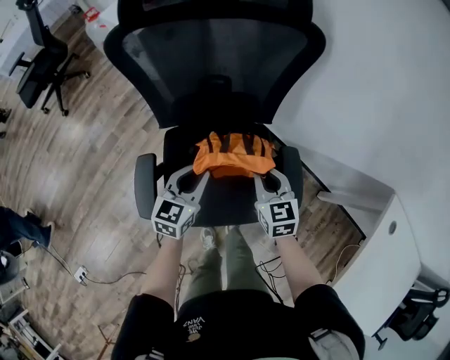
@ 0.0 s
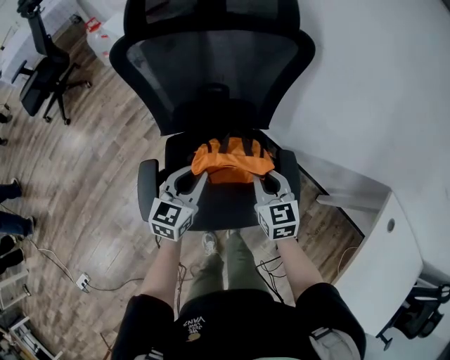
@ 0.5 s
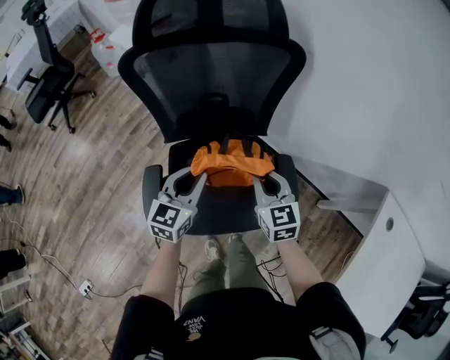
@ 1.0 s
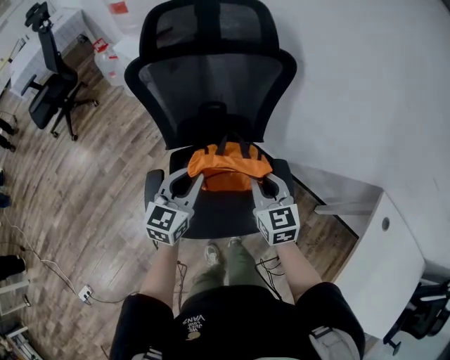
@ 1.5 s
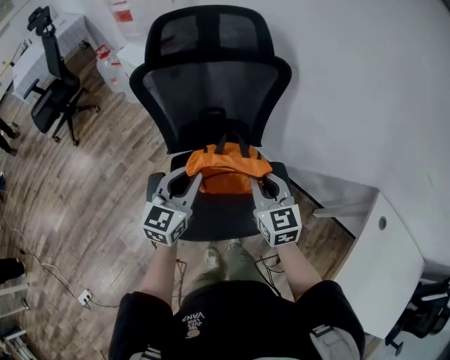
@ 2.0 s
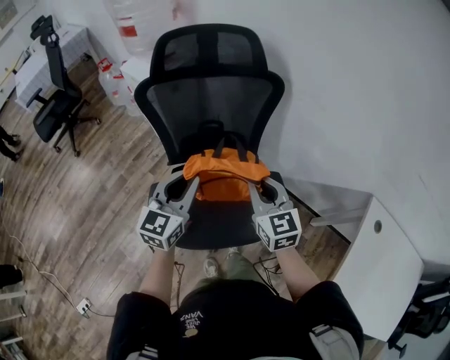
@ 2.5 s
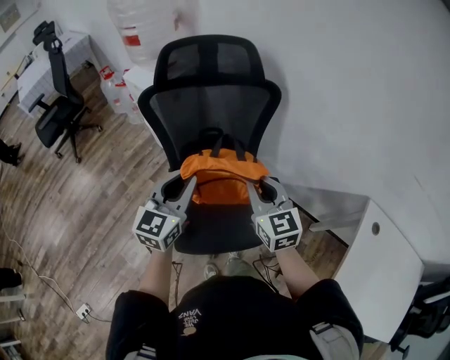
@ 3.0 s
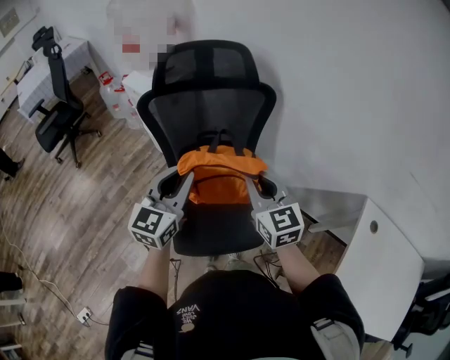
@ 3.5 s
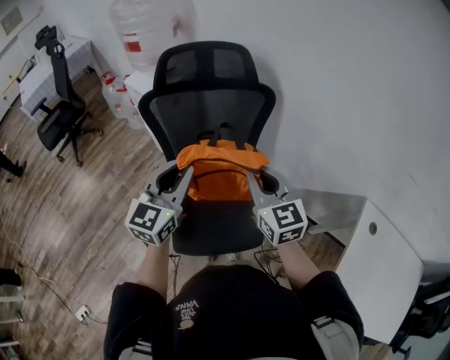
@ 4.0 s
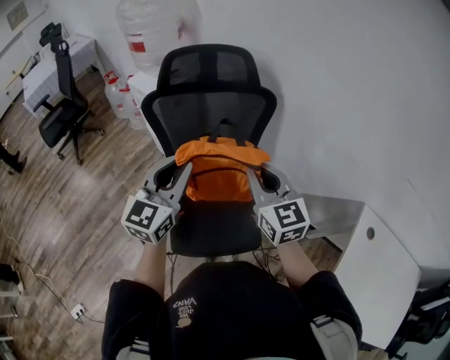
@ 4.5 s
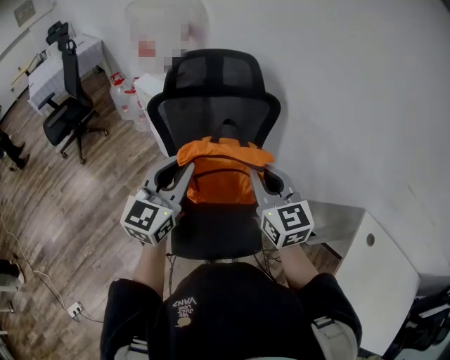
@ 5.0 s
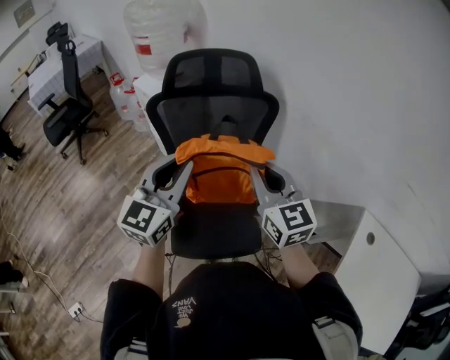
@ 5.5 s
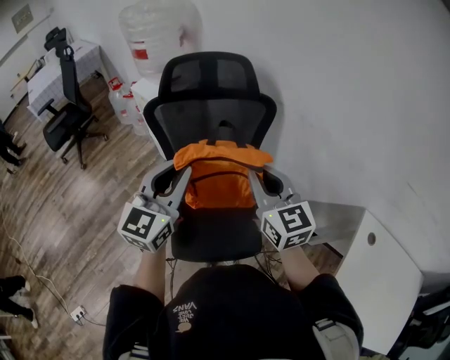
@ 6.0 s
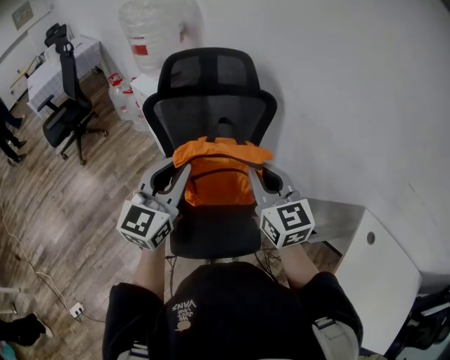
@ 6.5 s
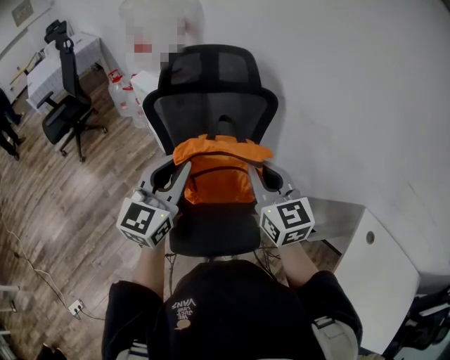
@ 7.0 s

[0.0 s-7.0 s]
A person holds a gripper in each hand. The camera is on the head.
0.0 to 2.0 s: Both grippers travel together upward, approximately 20 cm.
2.0 to 3.5 s: The two grippers go about 10 cm upward.
3.5 to 5.0 s: Both grippers move upward, some 5 cm.
5.0 to 7.0 s: The grippers make only small movements.

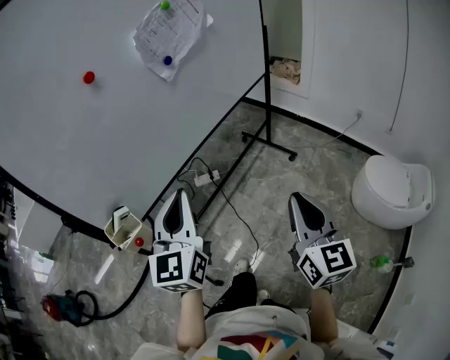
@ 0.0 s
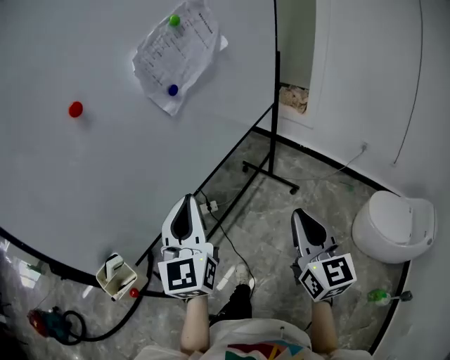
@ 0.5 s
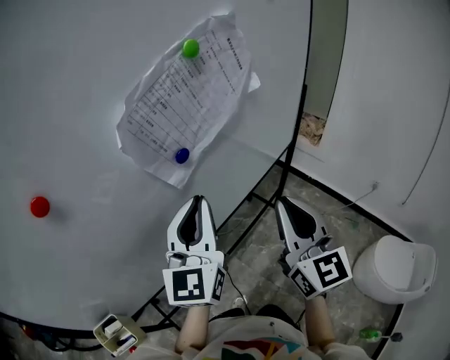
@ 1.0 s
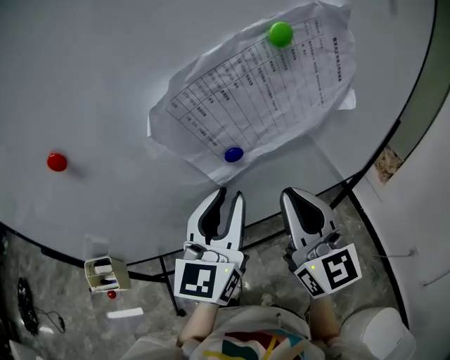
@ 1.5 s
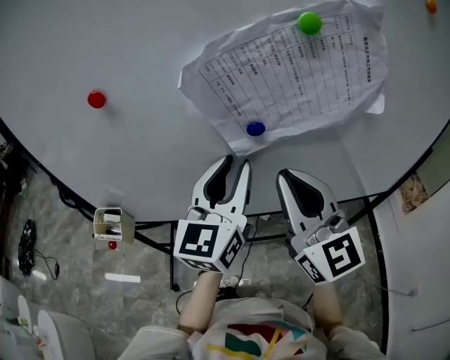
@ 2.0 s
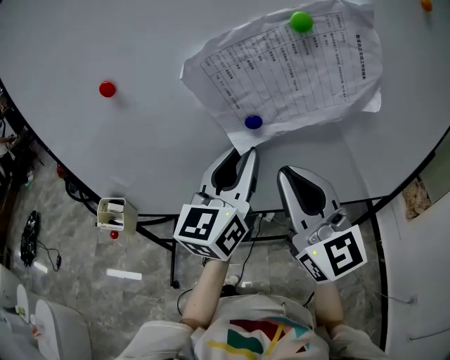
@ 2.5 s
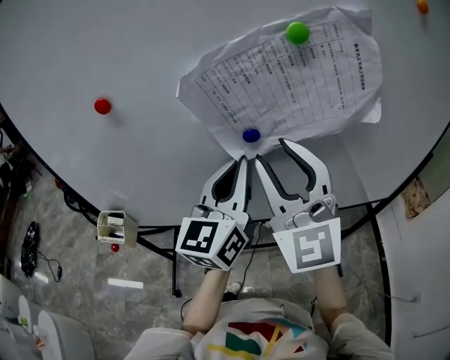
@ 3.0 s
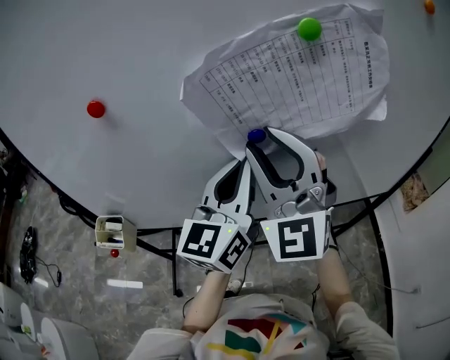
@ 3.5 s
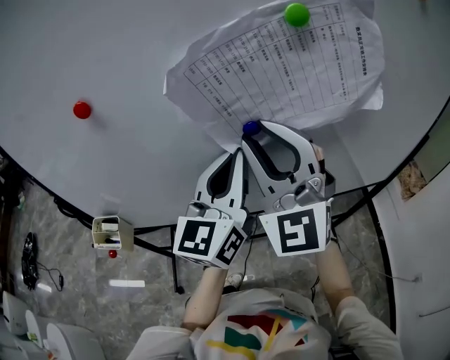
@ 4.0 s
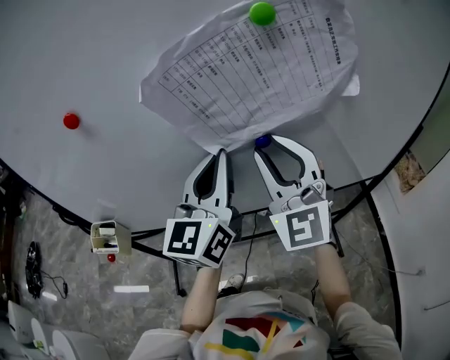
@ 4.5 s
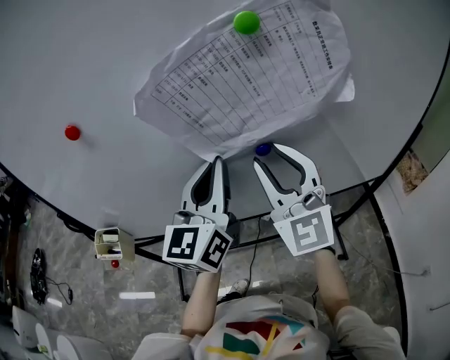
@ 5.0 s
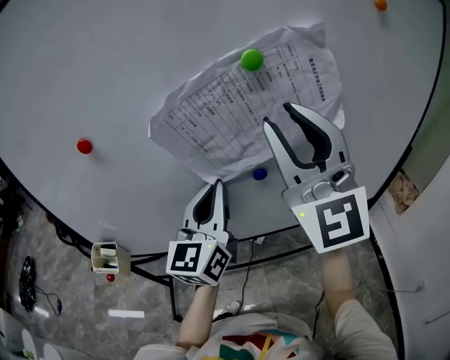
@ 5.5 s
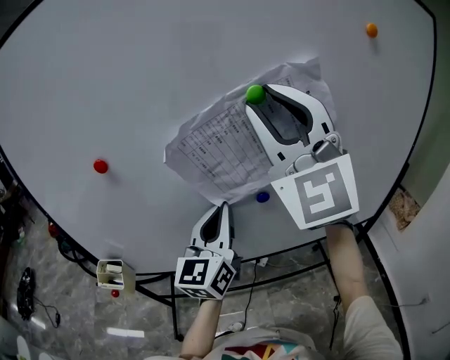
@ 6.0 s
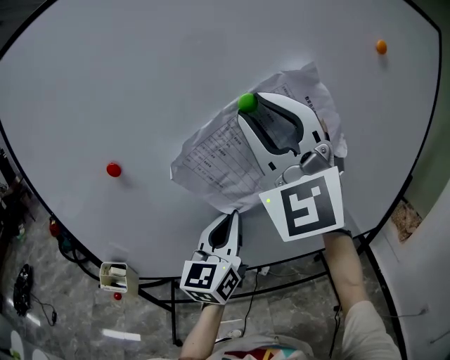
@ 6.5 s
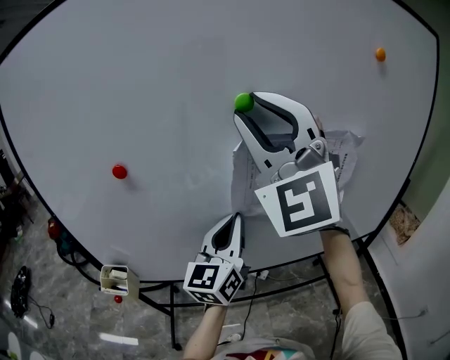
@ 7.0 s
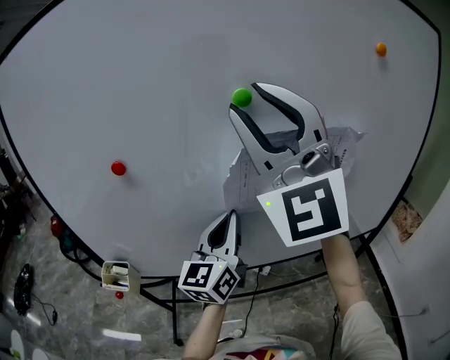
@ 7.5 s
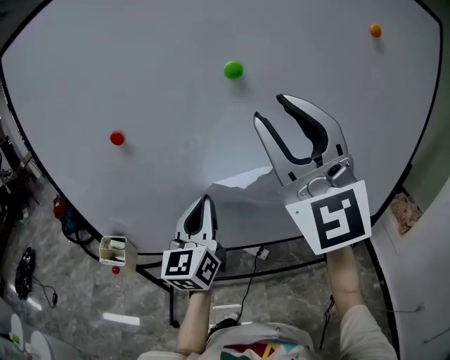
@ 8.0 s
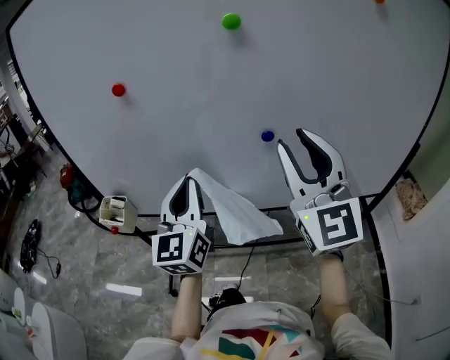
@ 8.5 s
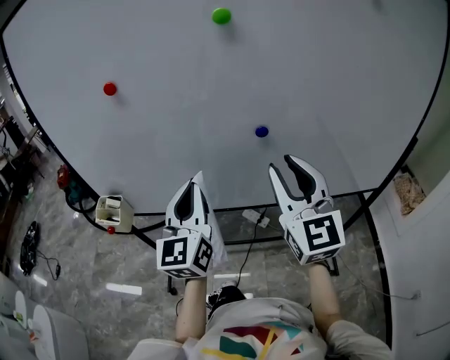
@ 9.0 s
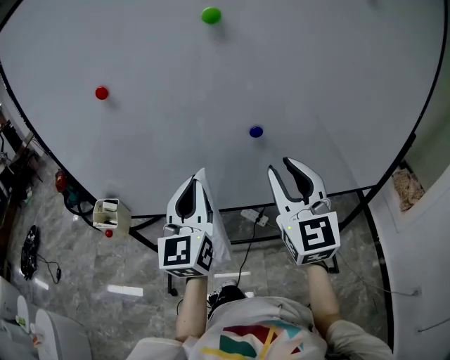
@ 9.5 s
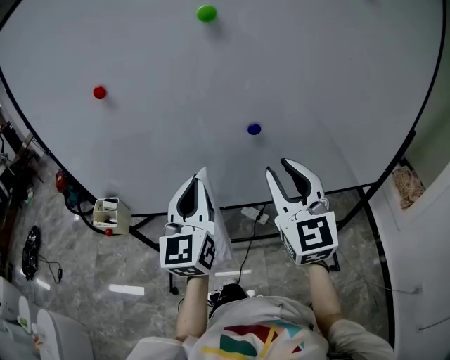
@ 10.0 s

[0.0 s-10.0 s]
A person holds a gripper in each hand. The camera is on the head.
0.0 to 2.0 s: The left gripper shifts by about 35 cm, swivels approximately 30 degrees, and opens its fingers, while the right gripper changes place by approximately 50 cm, and rotates approximately 60 degrees.
2.0 to 4.0 s: The left gripper closes its fingers. Meanwhile the right gripper travels forward by roughly 5 cm, rotates around the line of its fingers by approximately 40 degrees, counterclockwise from behind, and opens up.
4.0 to 6.0 s: The right gripper goes some 20 cm upward.
6.0 to 8.0 s: The left gripper travels to the left by roughly 5 cm, while the right gripper goes approximately 10 cm backward.
8.0 to 10.0 s: The left gripper goes roughly 5 cm backward, while the right gripper heads downward, covering about 25 cm, and rotates some 30 degrees.

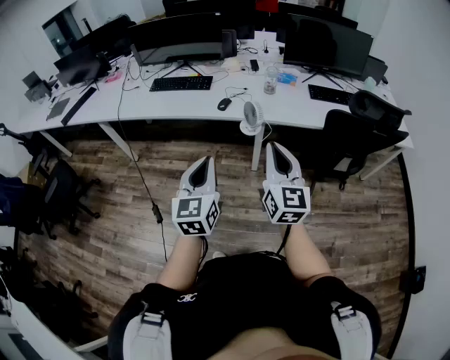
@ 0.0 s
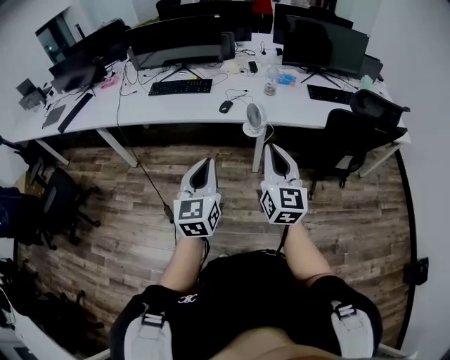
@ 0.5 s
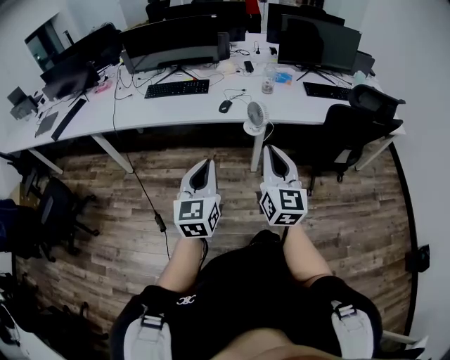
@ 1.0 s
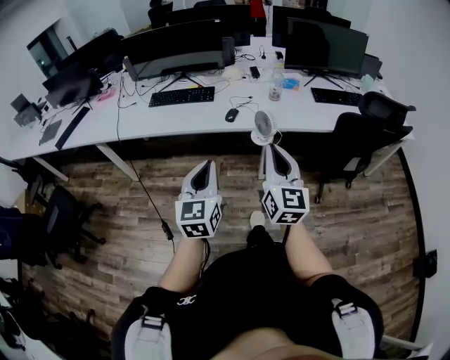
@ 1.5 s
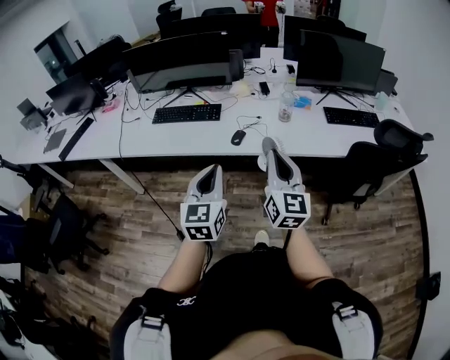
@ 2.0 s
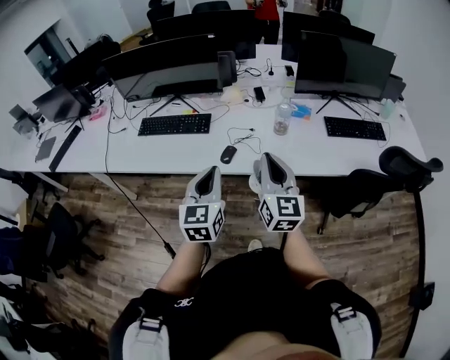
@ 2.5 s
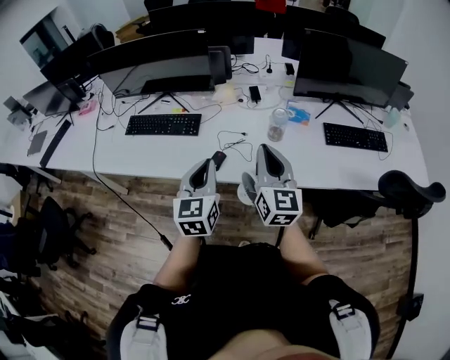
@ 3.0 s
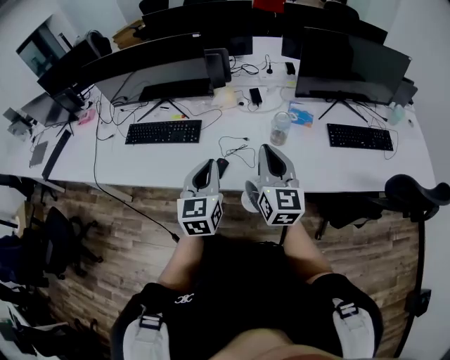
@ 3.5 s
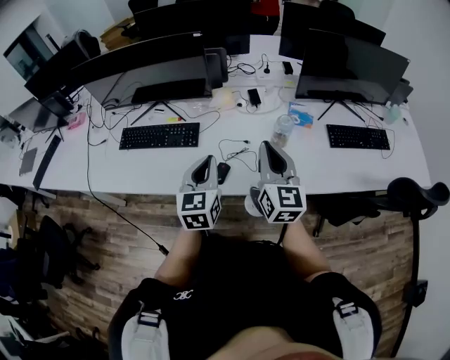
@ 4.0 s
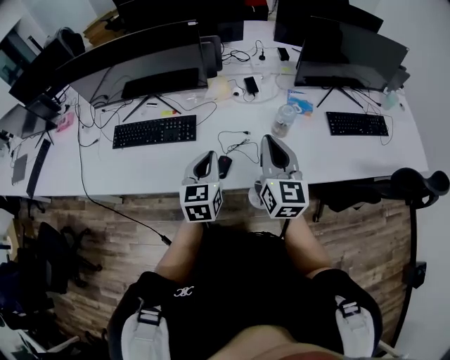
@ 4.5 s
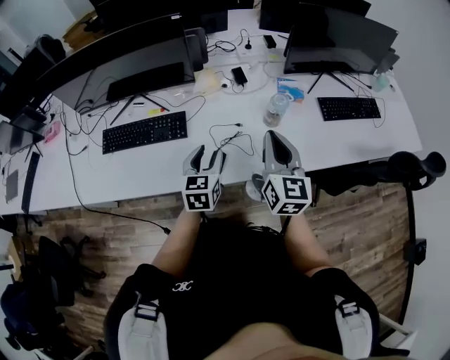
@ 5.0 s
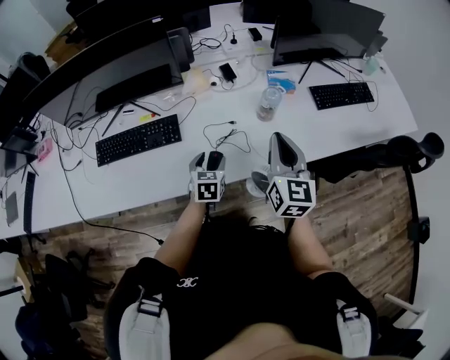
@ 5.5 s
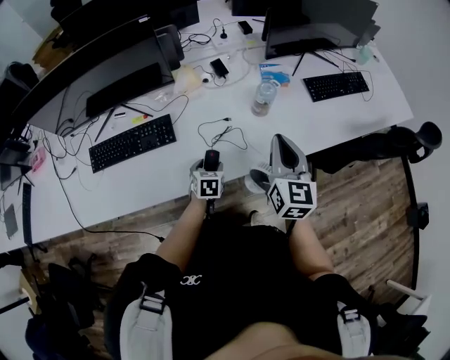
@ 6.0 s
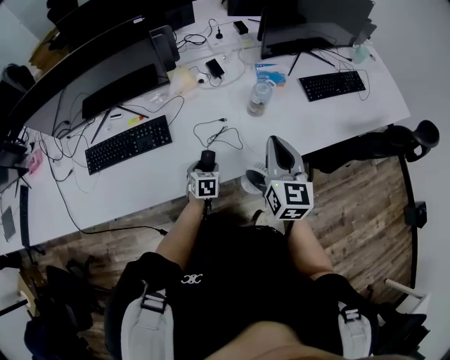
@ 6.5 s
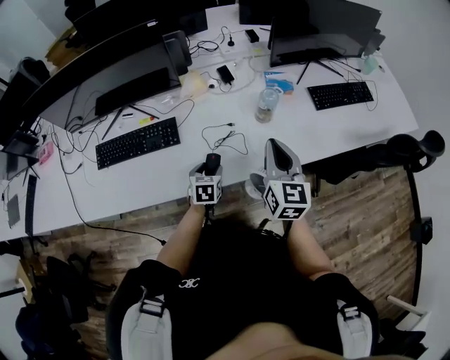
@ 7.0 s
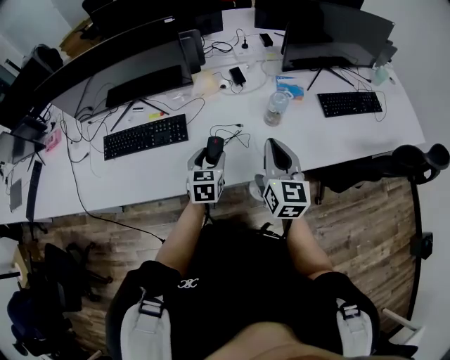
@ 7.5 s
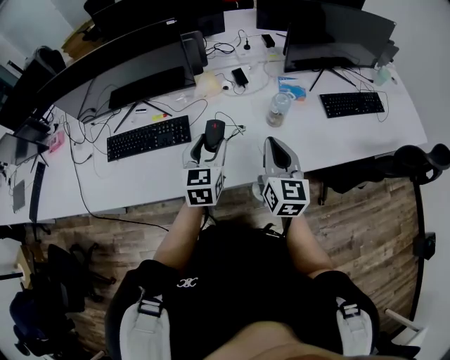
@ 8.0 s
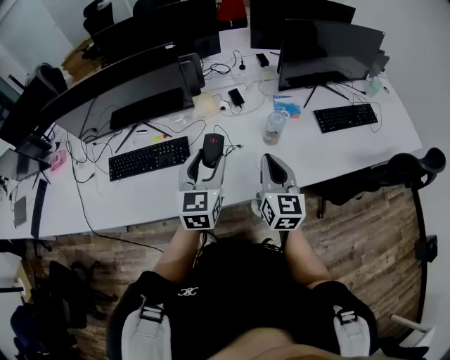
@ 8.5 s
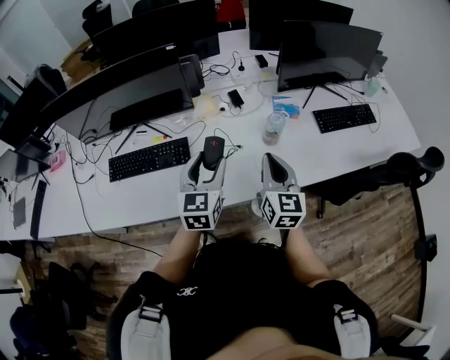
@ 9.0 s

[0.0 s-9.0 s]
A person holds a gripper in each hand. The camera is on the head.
0.0 to 2.0 s: Both grippers travel together forward and to the left, roughly 20 cm.
2.0 to 4.5 s: The grippers both shift forward by approximately 35 cm.
4.5 to 7.0 s: The left gripper heads downward, covering some 20 cm, turns by approximately 30 degrees, and opens up. Meanwhile the right gripper ends up some 5 cm from where it was.
7.0 to 9.0 s: The left gripper is displaced upward by approximately 25 cm, and points its fingers roughly 30 degrees further upward.

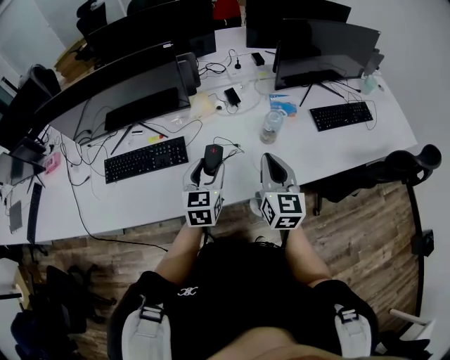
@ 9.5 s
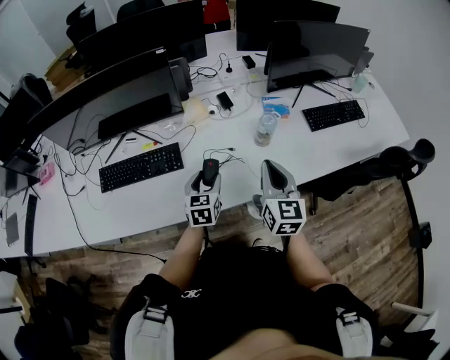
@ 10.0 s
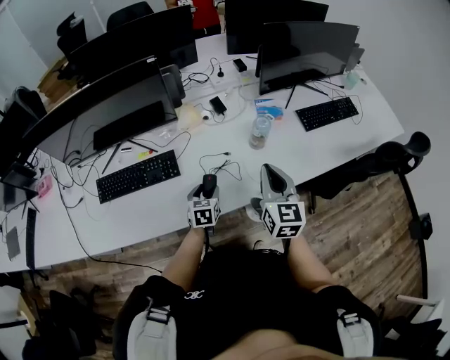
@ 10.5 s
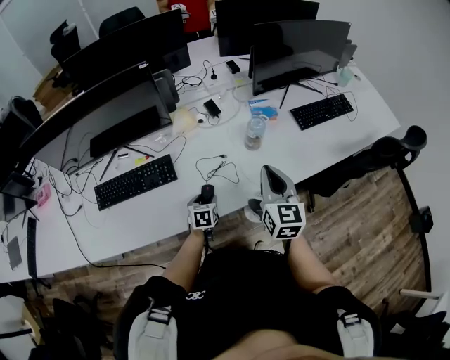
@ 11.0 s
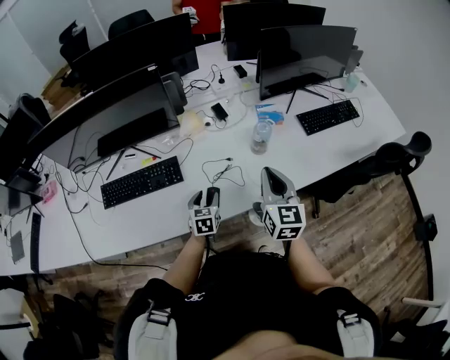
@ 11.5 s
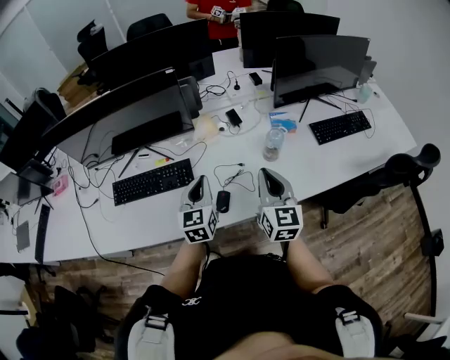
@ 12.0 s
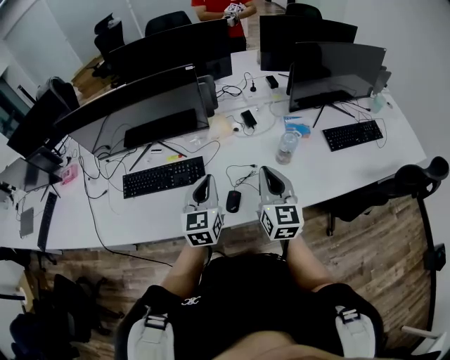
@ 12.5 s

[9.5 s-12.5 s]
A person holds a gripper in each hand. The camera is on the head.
9.5 to 11.0 s: The left gripper goes about 25 cm downward, and rotates about 30 degrees.
11.0 to 12.5 s: The left gripper heads upward, covering roughly 30 cm, points its fingers about 40 degrees further upward, and closes up. Meanwhile the right gripper goes approximately 10 cm to the left.
